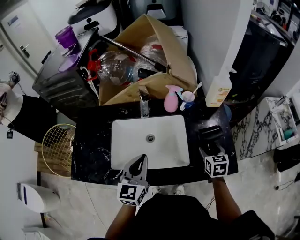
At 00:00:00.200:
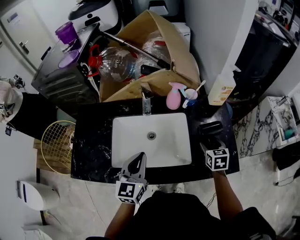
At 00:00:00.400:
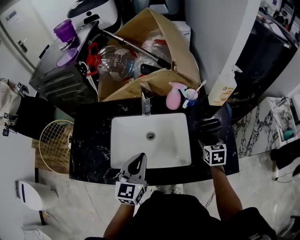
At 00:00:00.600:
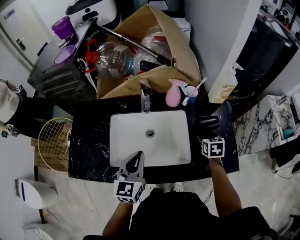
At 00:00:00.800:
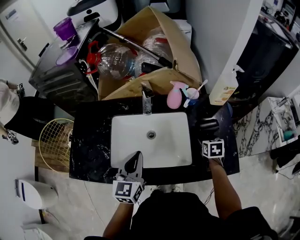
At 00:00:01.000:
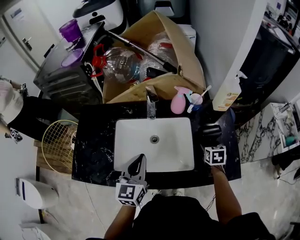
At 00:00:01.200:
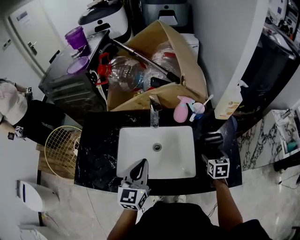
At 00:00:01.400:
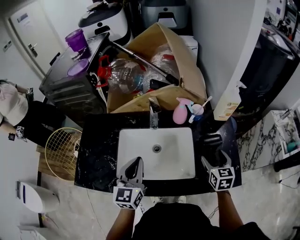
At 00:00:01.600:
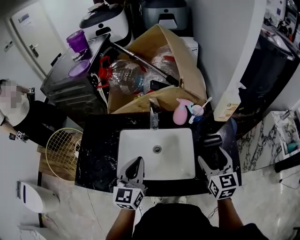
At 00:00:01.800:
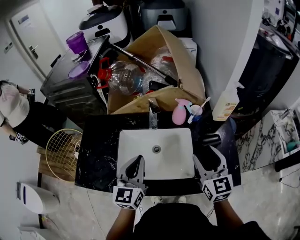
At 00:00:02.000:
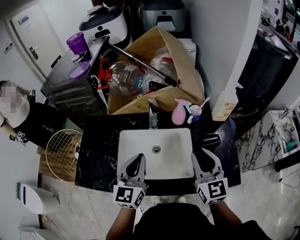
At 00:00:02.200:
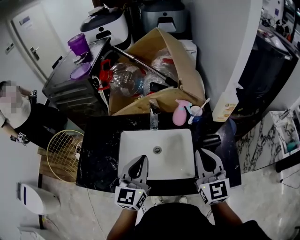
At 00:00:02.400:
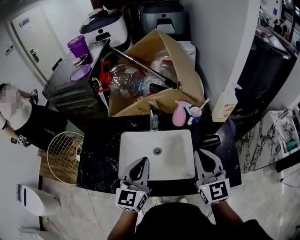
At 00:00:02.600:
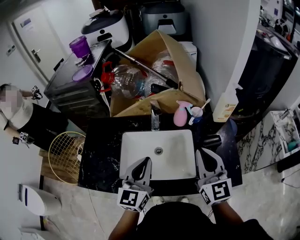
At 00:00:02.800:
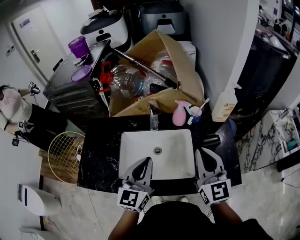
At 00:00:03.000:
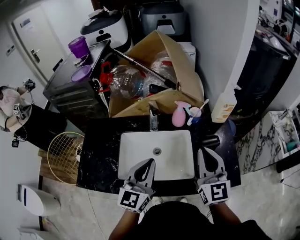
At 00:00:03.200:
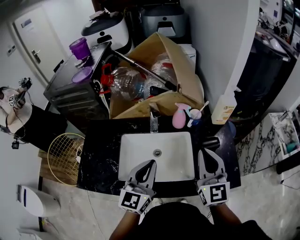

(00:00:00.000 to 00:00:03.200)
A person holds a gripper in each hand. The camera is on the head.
00:00:00.000 - 00:00:01.600: The left gripper moves about 5 cm. Meanwhile the right gripper shifts approximately 15 cm upward and to the left, and changes its angle by about 20 degrees.
00:00:01.600 - 00:00:03.200: The right gripper travels upward by some 10 cm, turns by some 20 degrees, and closes its fingers. The left gripper travels to the right by approximately 5 cm.

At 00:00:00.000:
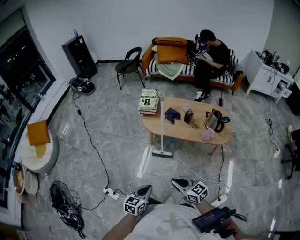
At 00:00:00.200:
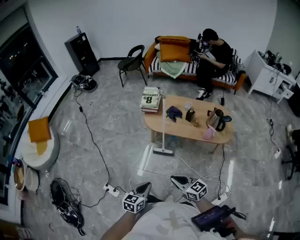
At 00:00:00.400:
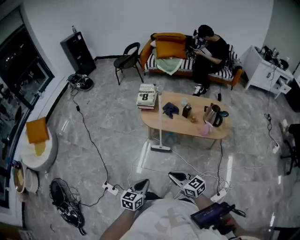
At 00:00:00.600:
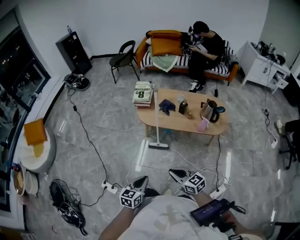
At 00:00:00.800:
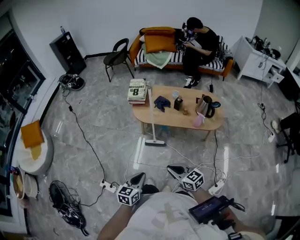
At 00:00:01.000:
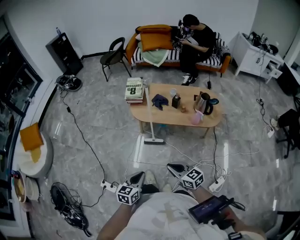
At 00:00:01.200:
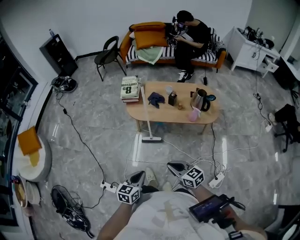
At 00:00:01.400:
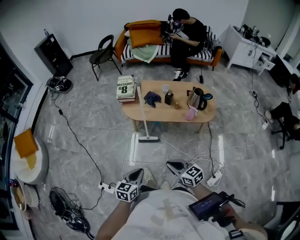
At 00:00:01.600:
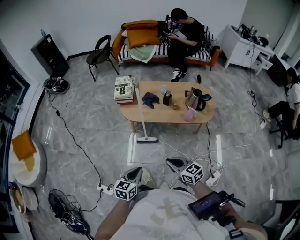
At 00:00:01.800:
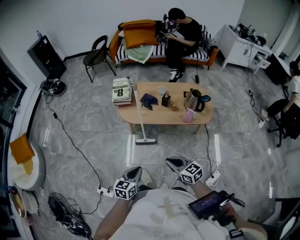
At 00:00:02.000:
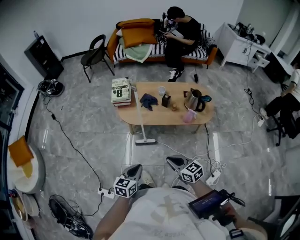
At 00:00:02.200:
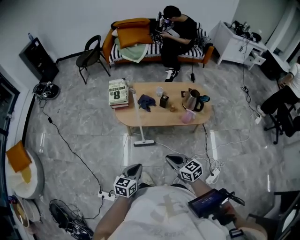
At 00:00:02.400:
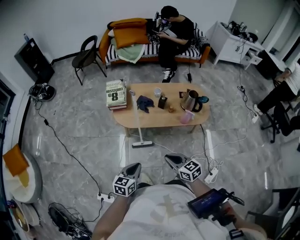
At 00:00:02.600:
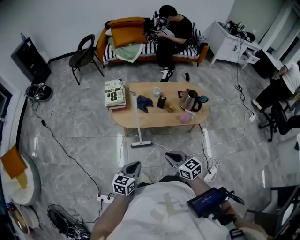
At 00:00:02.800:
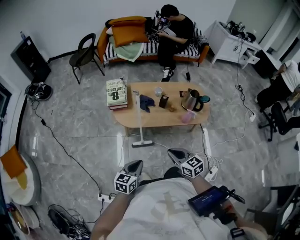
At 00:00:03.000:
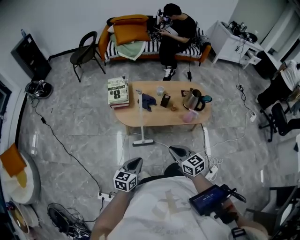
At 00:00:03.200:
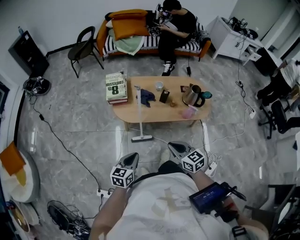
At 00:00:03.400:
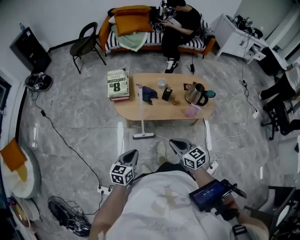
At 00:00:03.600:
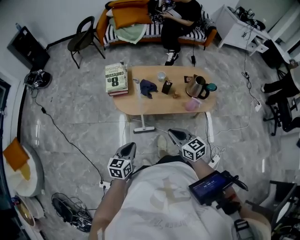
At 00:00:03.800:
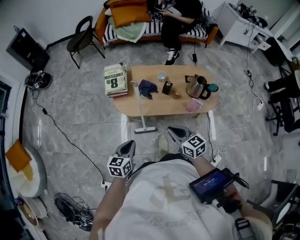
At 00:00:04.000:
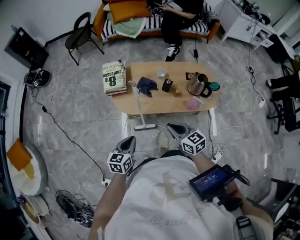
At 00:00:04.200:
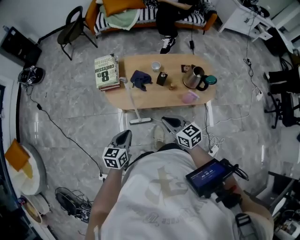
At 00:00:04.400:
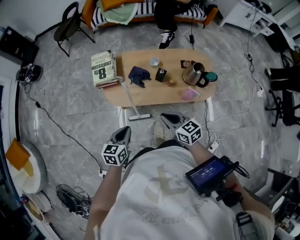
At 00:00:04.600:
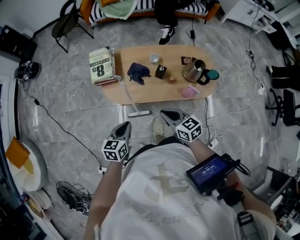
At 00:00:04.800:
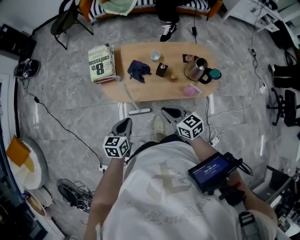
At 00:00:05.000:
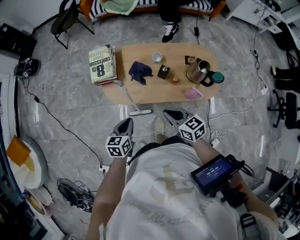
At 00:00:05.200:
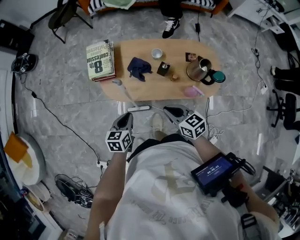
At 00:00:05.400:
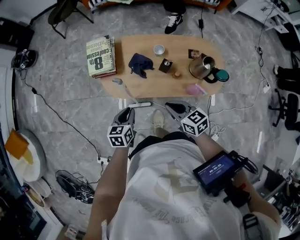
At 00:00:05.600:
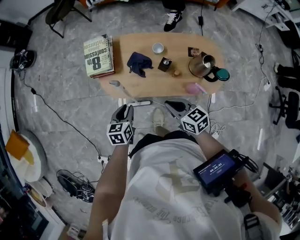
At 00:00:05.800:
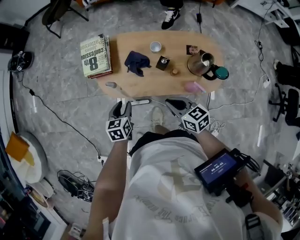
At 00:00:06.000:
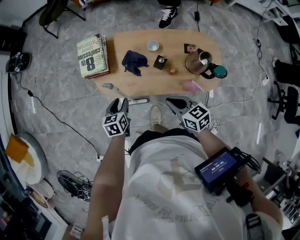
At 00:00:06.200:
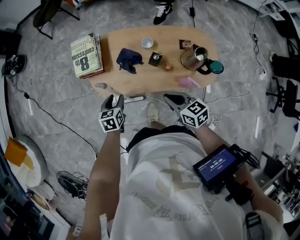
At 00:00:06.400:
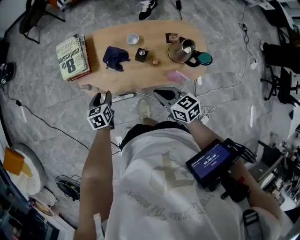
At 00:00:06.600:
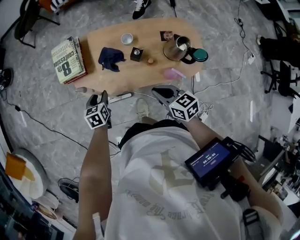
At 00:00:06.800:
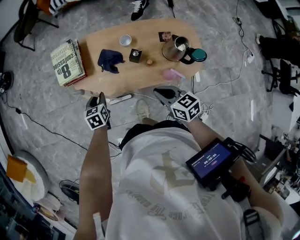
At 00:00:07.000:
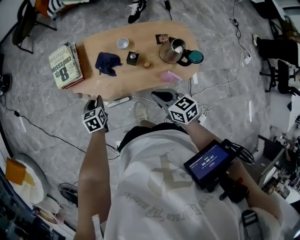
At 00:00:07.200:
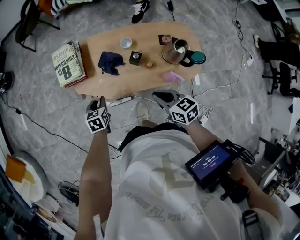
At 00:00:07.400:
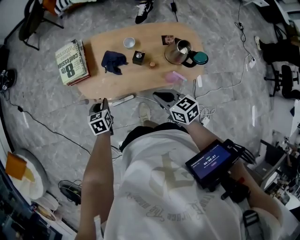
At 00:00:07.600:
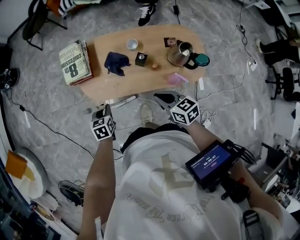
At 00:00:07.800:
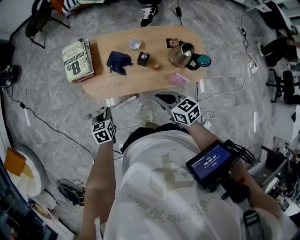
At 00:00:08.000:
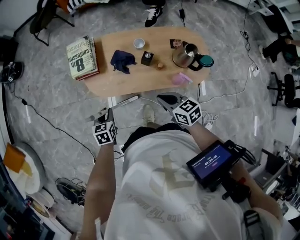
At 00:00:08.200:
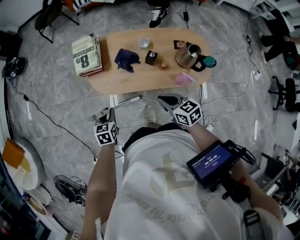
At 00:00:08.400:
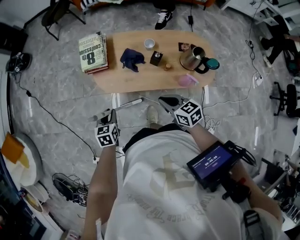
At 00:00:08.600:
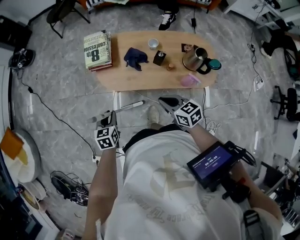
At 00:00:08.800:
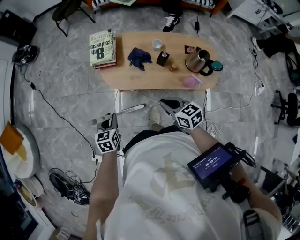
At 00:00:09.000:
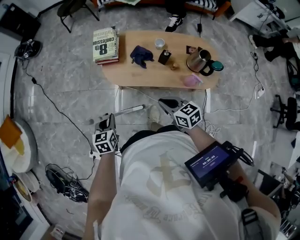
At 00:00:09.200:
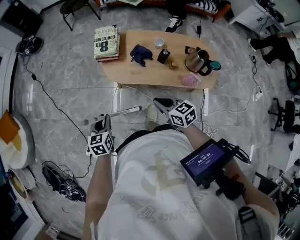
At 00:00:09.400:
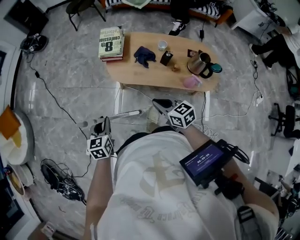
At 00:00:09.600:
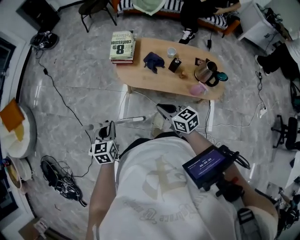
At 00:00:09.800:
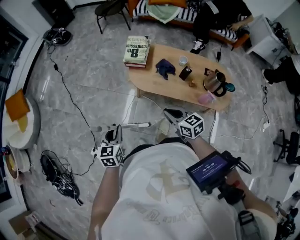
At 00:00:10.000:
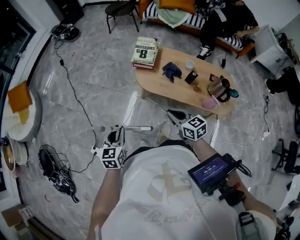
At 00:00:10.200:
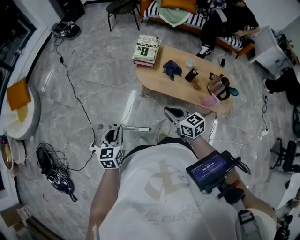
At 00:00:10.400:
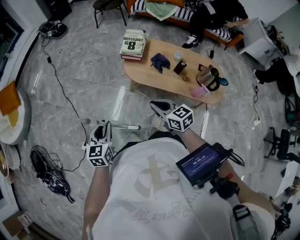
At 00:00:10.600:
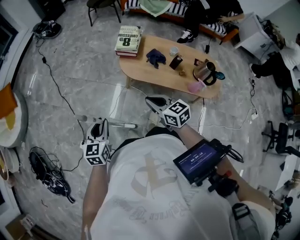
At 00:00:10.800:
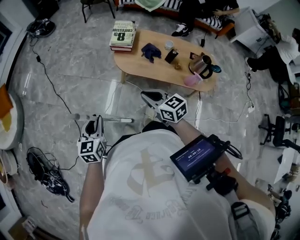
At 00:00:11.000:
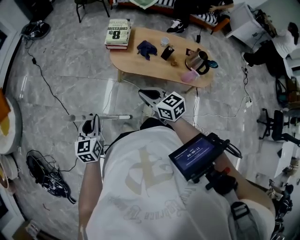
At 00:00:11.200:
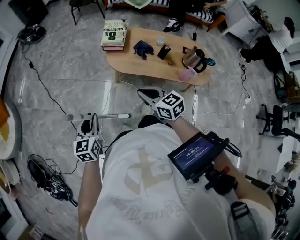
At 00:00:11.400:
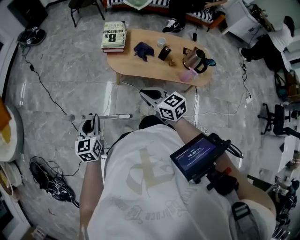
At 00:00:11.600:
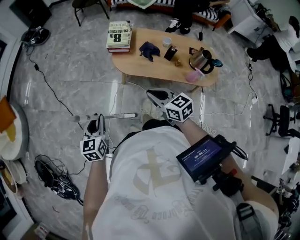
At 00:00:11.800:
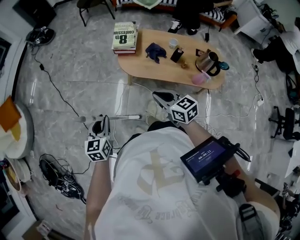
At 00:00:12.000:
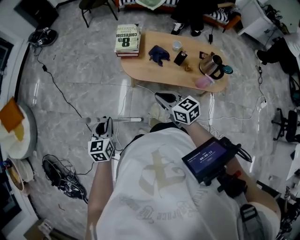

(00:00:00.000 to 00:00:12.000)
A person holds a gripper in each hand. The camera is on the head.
00:00:00.000 - 00:00:01.600: The right gripper goes some 5 cm to the right. Meanwhile the left gripper travels forward by roughly 5 cm.
00:00:01.600 - 00:00:03.000: Both grippers move forward, roughly 15 cm.
00:00:03.000 - 00:00:04.400: Both grippers travel together forward, approximately 15 cm.
00:00:04.400 - 00:00:06.000: The left gripper heads forward and downward, covering roughly 20 cm, and opens. Meanwhile the right gripper moves forward, to the right and downward, approximately 10 cm.
00:00:06.000 - 00:00:07.600: There are only small adjustments of the grippers.
00:00:07.600 - 00:00:09.000: The right gripper shifts roughly 10 cm to the left and backward. Meanwhile the left gripper travels to the left, backward and upward by about 20 cm.
00:00:09.000 - 00:00:10.400: The left gripper moves to the left, backward and upward, some 20 cm. The right gripper travels to the left and upward by approximately 20 cm.
00:00:10.400 - 00:00:12.000: The right gripper shifts by roughly 5 cm; the left gripper shifts approximately 5 cm forward.

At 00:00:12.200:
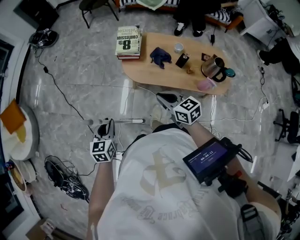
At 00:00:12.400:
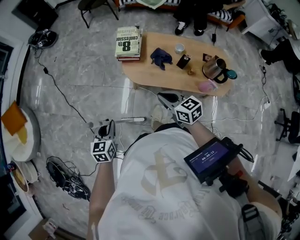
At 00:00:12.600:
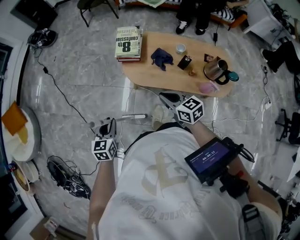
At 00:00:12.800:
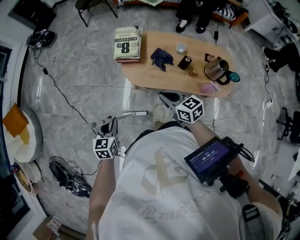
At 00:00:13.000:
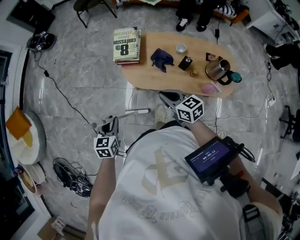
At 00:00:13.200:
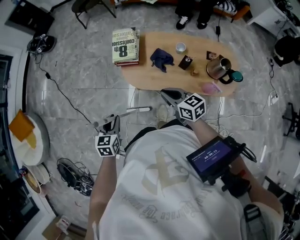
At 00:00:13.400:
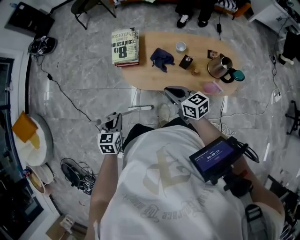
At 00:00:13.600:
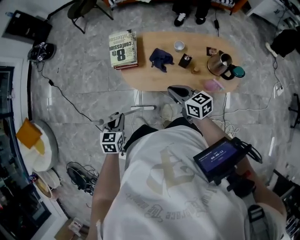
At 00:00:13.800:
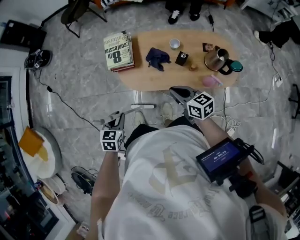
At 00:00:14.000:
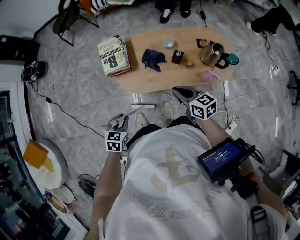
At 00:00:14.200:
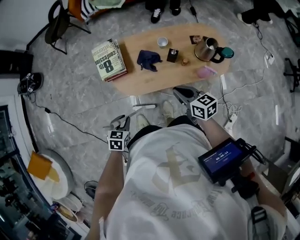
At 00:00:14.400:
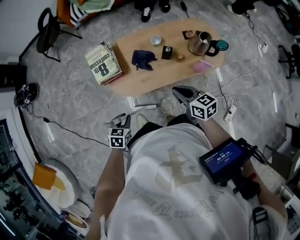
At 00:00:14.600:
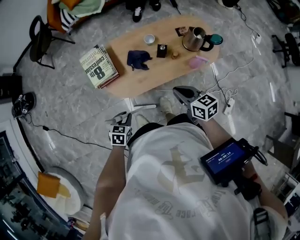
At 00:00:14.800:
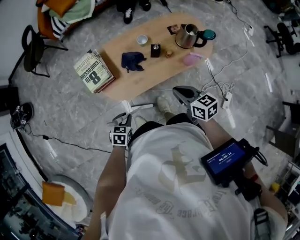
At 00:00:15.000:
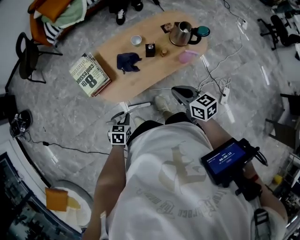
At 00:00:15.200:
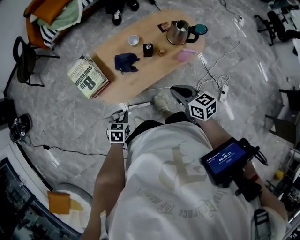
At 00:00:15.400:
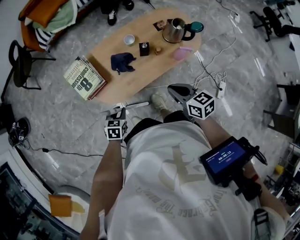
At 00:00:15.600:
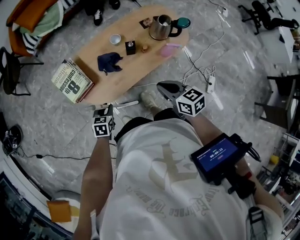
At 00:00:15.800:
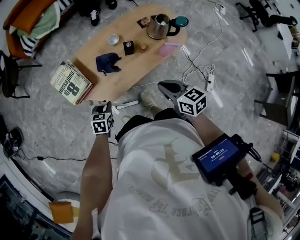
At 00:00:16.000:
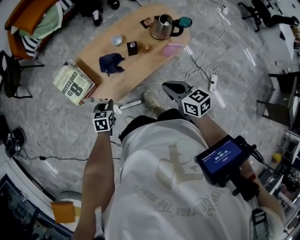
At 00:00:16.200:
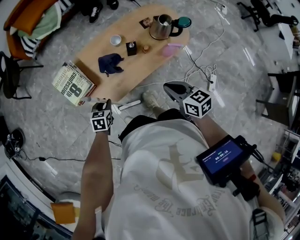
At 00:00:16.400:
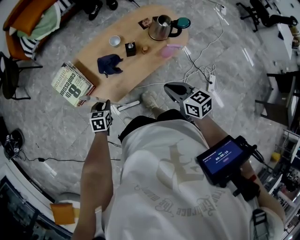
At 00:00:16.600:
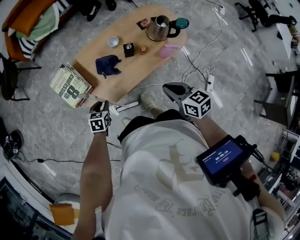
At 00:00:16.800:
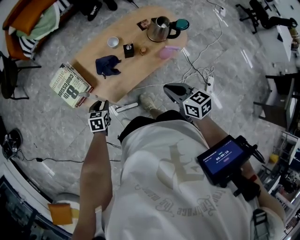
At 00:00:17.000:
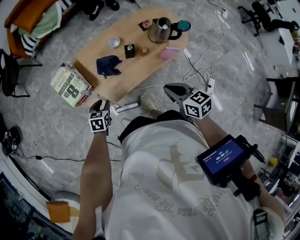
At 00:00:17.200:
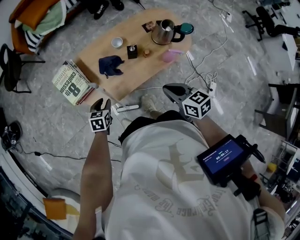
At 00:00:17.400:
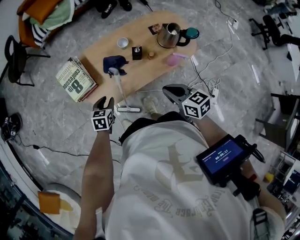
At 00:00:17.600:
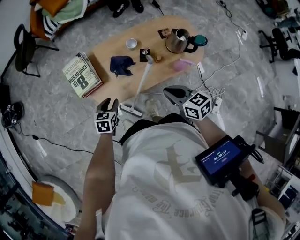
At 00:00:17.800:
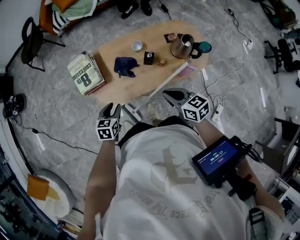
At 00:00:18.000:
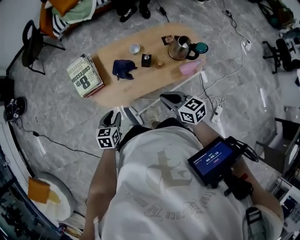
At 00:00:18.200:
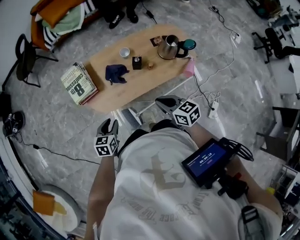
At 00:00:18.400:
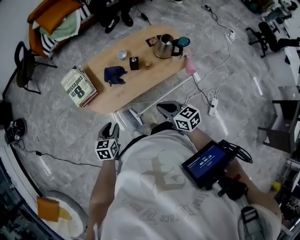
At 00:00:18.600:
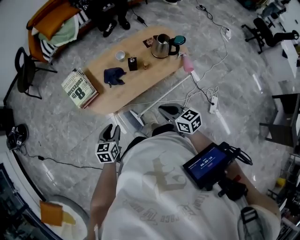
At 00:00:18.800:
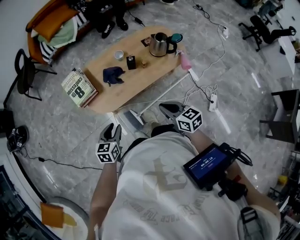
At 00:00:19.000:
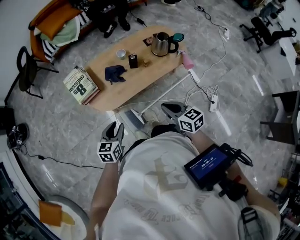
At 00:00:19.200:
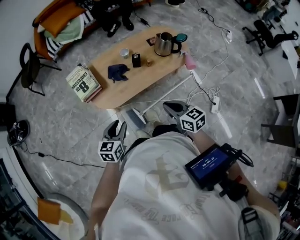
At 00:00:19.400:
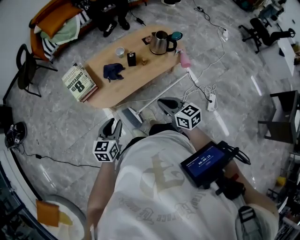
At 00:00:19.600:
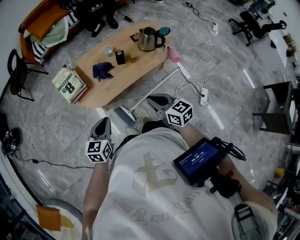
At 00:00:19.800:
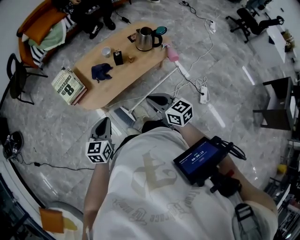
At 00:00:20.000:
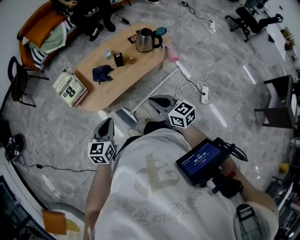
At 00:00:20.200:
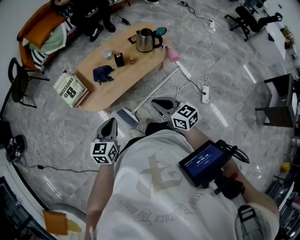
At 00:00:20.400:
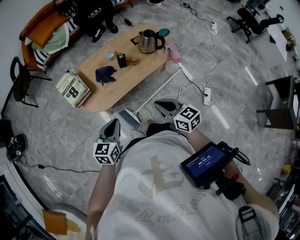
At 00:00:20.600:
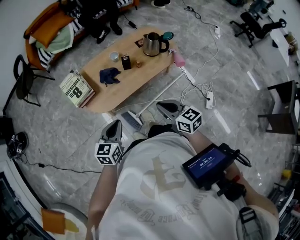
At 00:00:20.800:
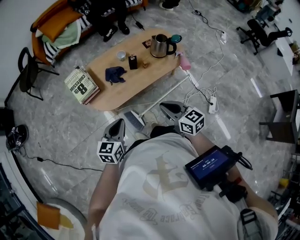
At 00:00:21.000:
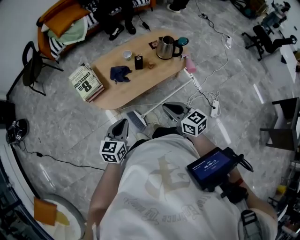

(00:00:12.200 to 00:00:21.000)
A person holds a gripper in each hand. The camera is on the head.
00:00:12.200 - 00:00:13.600: The left gripper travels forward and to the right by about 15 cm. The right gripper is displaced to the right and forward by approximately 15 cm.
00:00:13.600 - 00:00:15.200: The left gripper travels downward by about 10 cm, and changes its angle by approximately 40 degrees; the right gripper ends up some 10 cm from where it was, and swivels approximately 30 degrees.
00:00:15.200 - 00:00:16.600: The left gripper goes some 10 cm forward.
00:00:16.600 - 00:00:18.000: The right gripper rotates approximately 20 degrees. Meanwhile the left gripper shifts approximately 10 cm upward and backward.
00:00:18.000 - 00:00:19.600: The right gripper shifts roughly 15 cm backward, while the left gripper is displaced backward and upward by roughly 15 cm, swivels about 20 degrees, and closes its fingers.
00:00:19.600 - 00:00:21.000: There are only small adjustments of the grippers.
